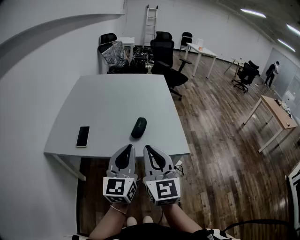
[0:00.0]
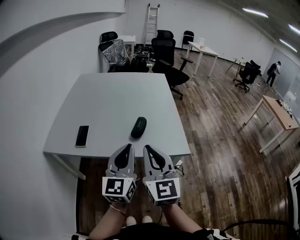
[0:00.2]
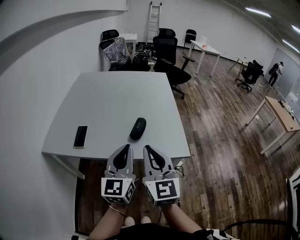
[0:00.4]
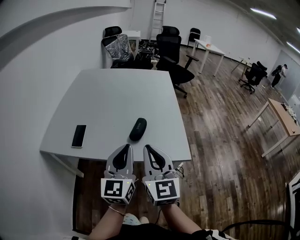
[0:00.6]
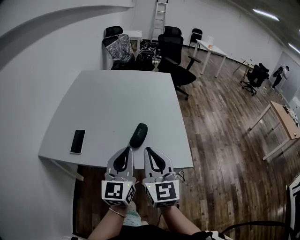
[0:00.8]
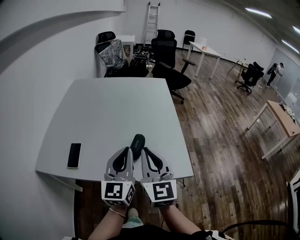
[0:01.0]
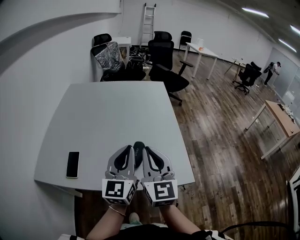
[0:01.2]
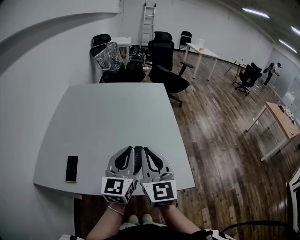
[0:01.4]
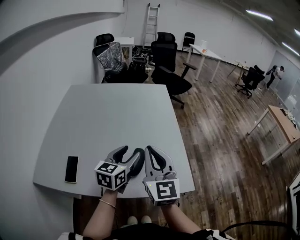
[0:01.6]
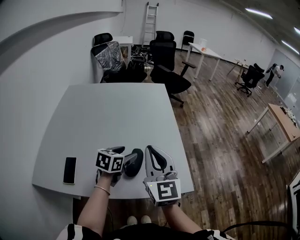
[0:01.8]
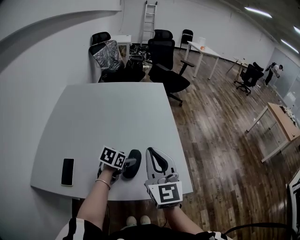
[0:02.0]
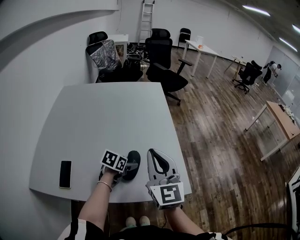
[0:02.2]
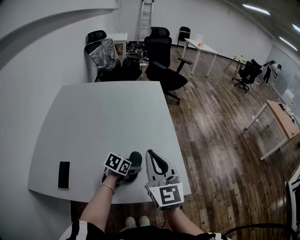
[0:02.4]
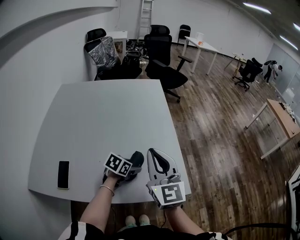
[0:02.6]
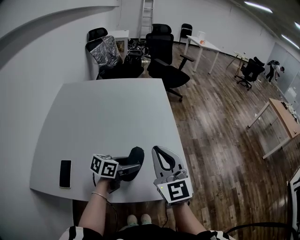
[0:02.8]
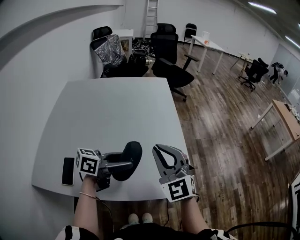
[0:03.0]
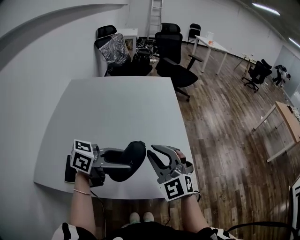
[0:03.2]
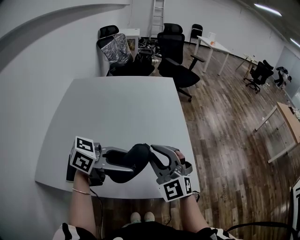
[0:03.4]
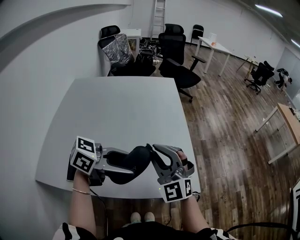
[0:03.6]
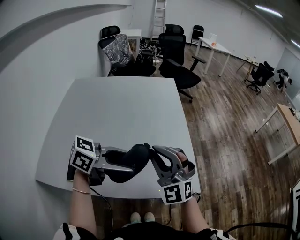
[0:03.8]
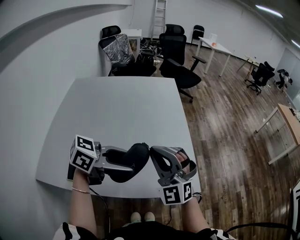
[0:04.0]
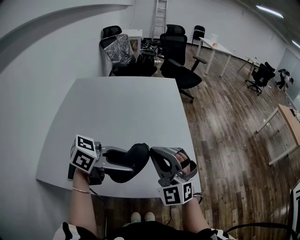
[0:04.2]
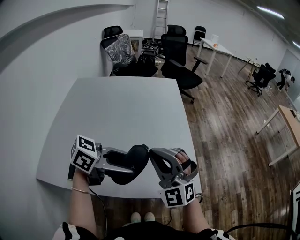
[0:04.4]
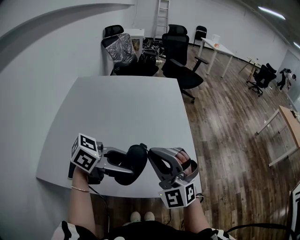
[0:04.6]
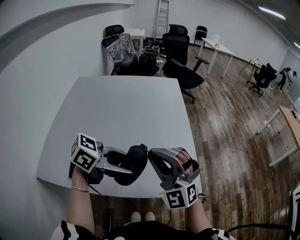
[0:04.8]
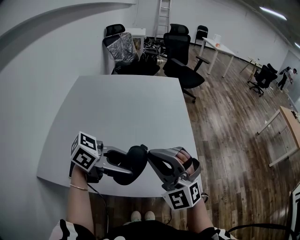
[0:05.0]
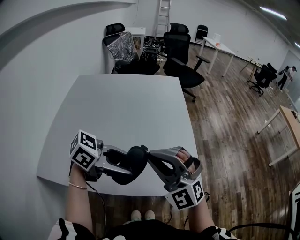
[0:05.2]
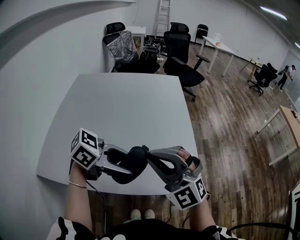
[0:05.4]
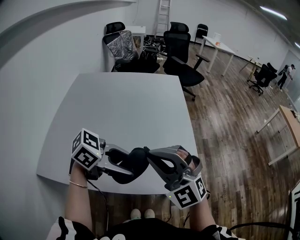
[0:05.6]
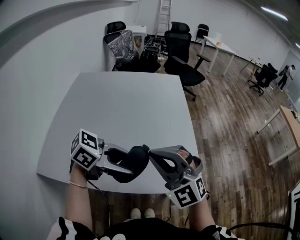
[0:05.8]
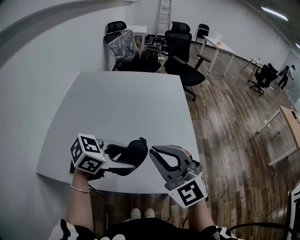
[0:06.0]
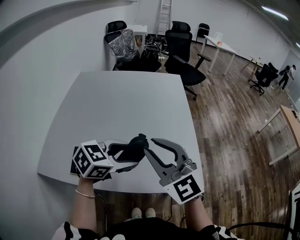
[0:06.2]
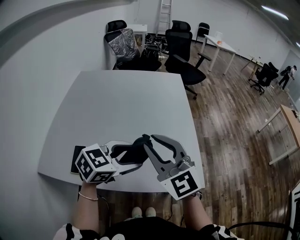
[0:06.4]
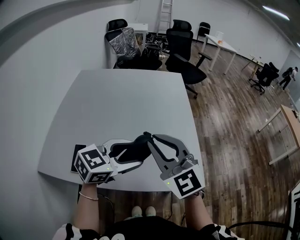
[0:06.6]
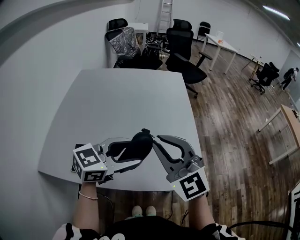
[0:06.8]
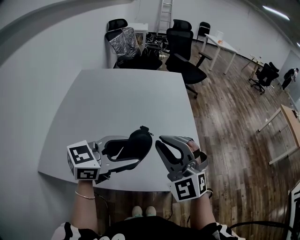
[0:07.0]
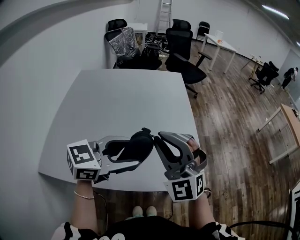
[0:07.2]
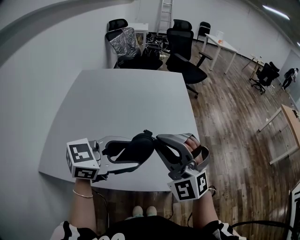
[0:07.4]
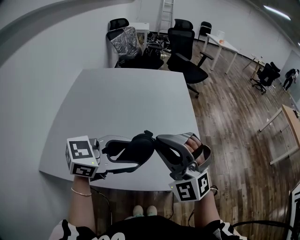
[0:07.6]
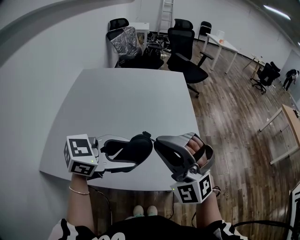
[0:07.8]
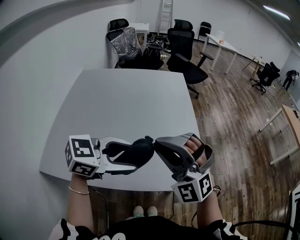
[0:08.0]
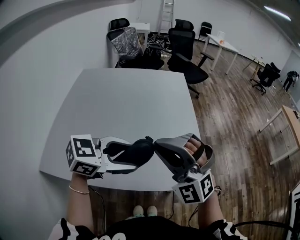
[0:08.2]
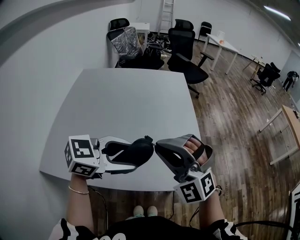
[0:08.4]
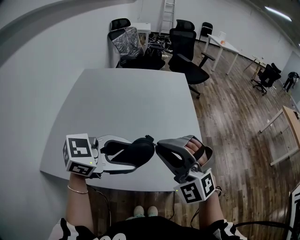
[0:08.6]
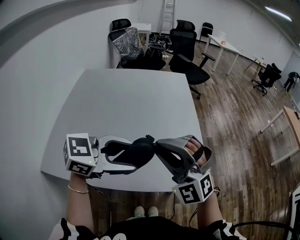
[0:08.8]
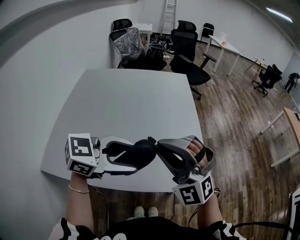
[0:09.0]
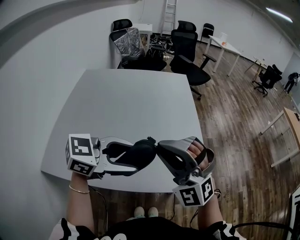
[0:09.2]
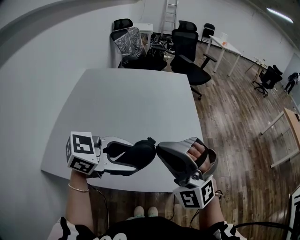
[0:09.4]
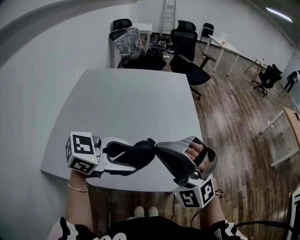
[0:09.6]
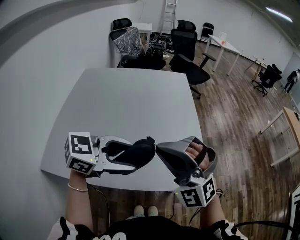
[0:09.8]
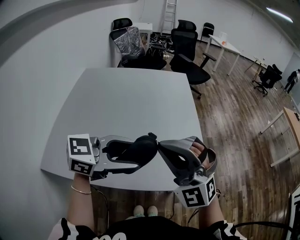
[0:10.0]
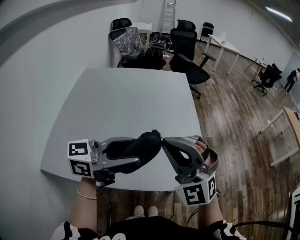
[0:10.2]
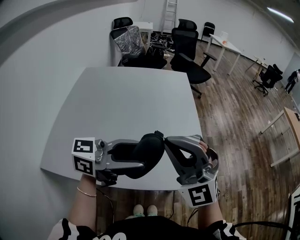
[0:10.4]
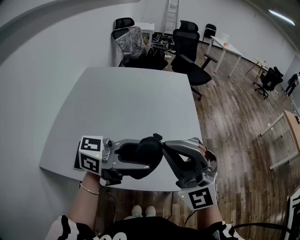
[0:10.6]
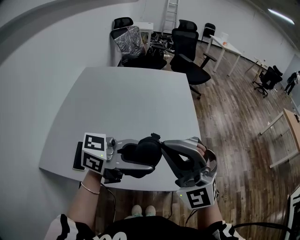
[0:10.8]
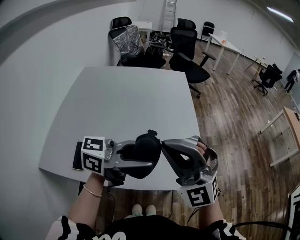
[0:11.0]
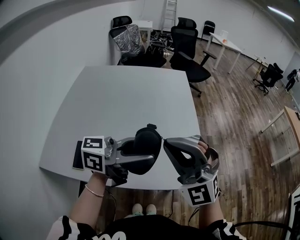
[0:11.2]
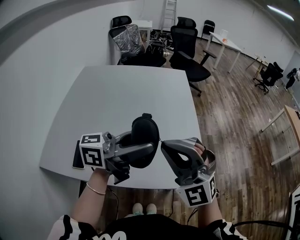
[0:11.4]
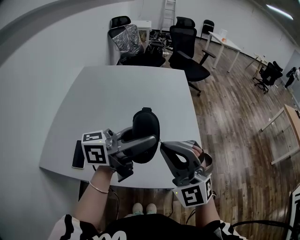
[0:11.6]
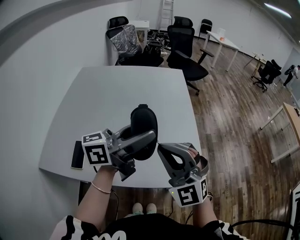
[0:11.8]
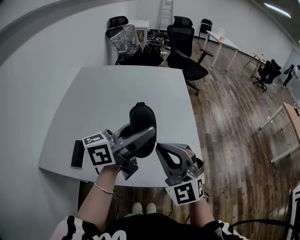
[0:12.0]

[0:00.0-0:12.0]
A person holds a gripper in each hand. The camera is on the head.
0:00.0 to 0:01.6: Both grippers travel together forward, roughly 25 cm. The left gripper rotates about 30 degrees, and opens its fingers.
0:01.6 to 0:03.0: The left gripper moves some 20 cm downward and comes back, and changes its angle by approximately 40 degrees. The right gripper moves about 5 cm, and changes its angle by about 30 degrees.
0:03.0 to 0:04.4: The right gripper travels backward by some 5 cm, and swivels about 20 degrees, while the left gripper heads upward and backward, covering some 10 cm.
0:04.4 to 0:06.0: The left gripper turns by about 20 degrees; the right gripper turns by about 20 degrees.
0:06.0 to 0:07.6: The right gripper changes its angle by about 30 degrees. Meanwhile the left gripper moves upward, approximately 5 cm.
0:07.6 to 0:09.0: There are only small adjustments of the grippers.
0:09.0 to 0:10.4: The left gripper swivels roughly 30 degrees.
0:10.4 to 0:12.0: The left gripper moves some 10 cm, and turns by roughly 30 degrees. The right gripper is displaced downward by roughly 10 cm.

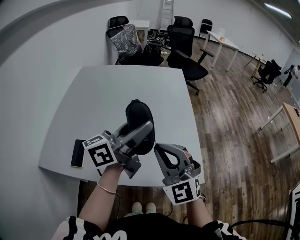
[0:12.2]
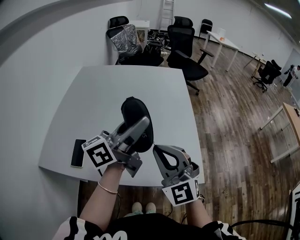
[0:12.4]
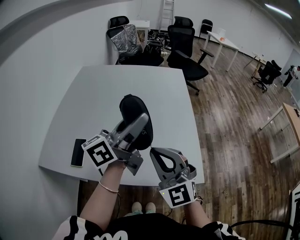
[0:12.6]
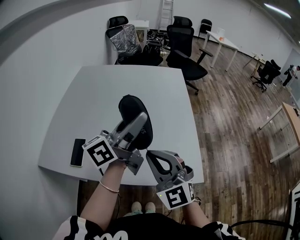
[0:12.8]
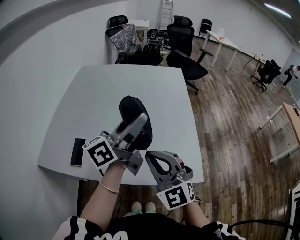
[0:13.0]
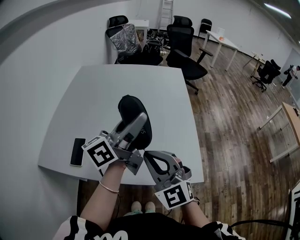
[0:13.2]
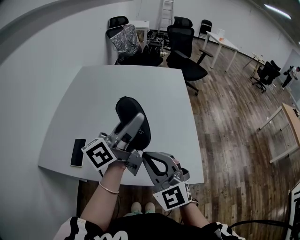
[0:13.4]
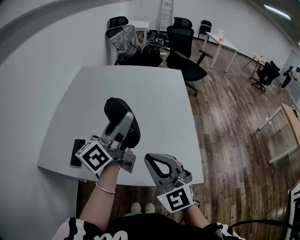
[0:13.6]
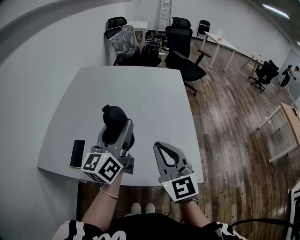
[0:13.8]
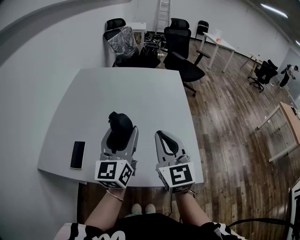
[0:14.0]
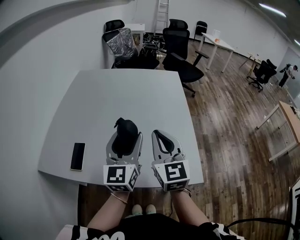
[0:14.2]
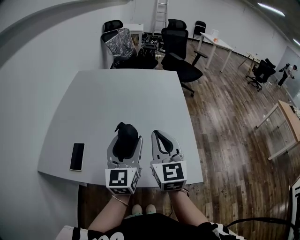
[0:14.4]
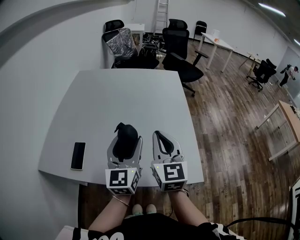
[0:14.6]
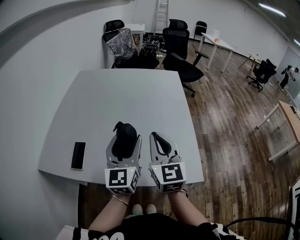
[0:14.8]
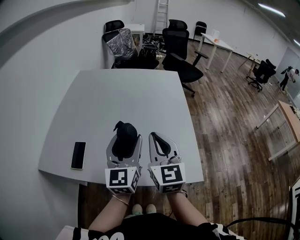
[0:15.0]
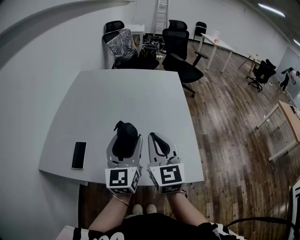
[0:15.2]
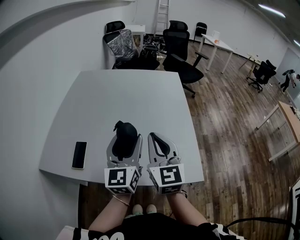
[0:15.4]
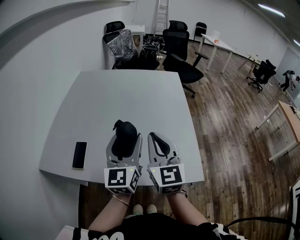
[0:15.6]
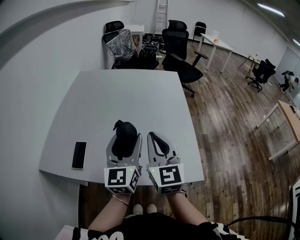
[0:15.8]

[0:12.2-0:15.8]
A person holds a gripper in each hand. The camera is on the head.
0:12.2 to 0:14.0: The left gripper is displaced to the left by approximately 5 cm, and turns by some 50 degrees, while the right gripper moves forward, some 5 cm, and turns by roughly 30 degrees.
0:14.0 to 0:15.8: The grippers stay close to where they were, moving slightly.

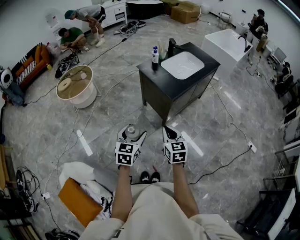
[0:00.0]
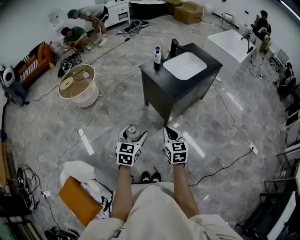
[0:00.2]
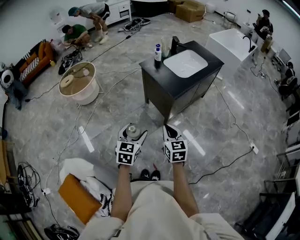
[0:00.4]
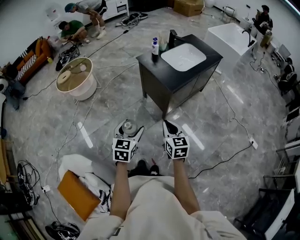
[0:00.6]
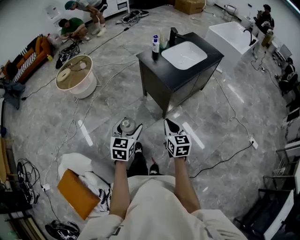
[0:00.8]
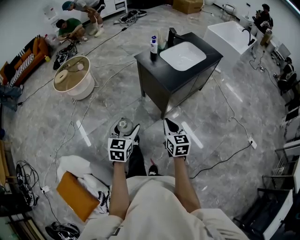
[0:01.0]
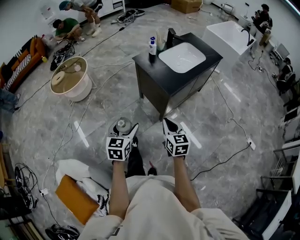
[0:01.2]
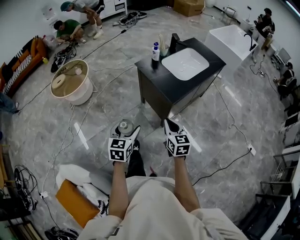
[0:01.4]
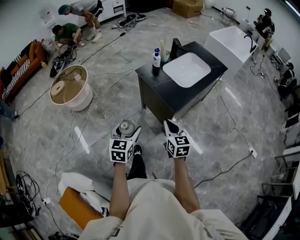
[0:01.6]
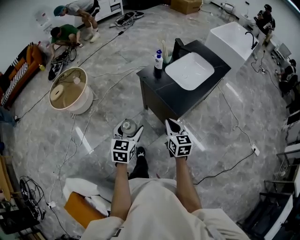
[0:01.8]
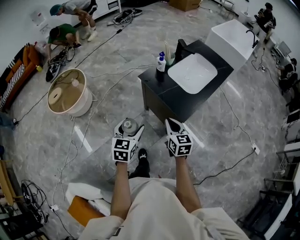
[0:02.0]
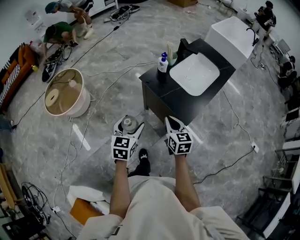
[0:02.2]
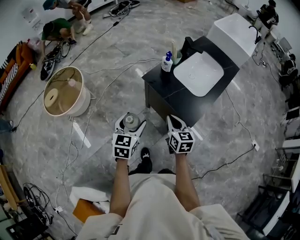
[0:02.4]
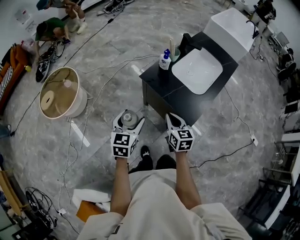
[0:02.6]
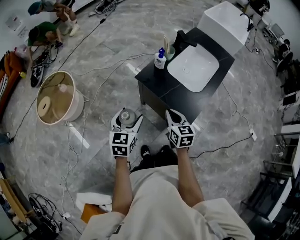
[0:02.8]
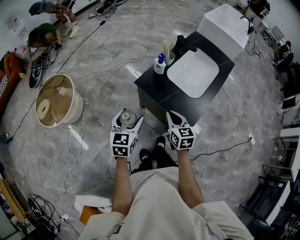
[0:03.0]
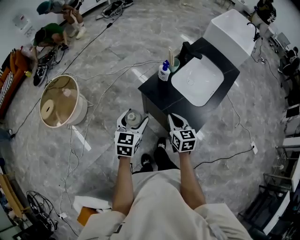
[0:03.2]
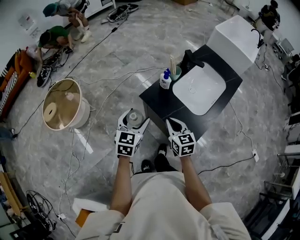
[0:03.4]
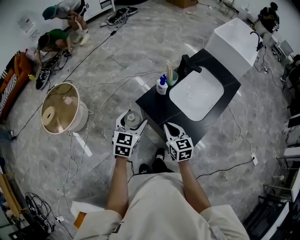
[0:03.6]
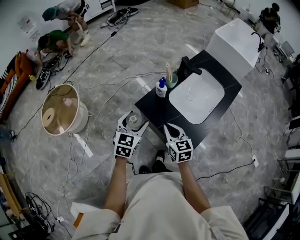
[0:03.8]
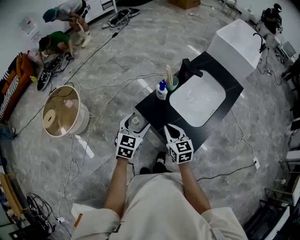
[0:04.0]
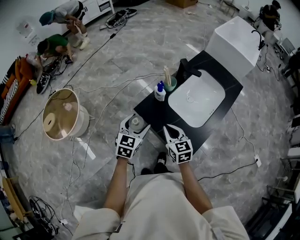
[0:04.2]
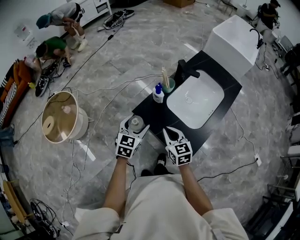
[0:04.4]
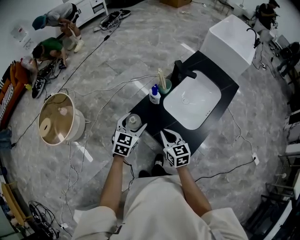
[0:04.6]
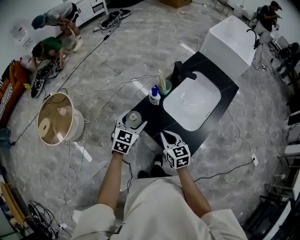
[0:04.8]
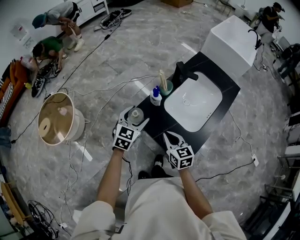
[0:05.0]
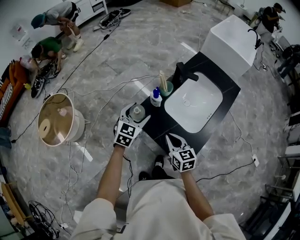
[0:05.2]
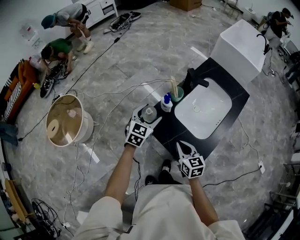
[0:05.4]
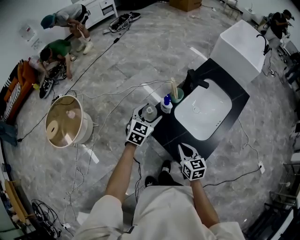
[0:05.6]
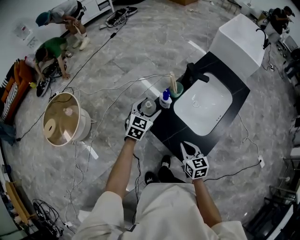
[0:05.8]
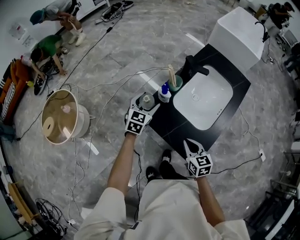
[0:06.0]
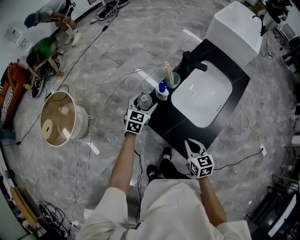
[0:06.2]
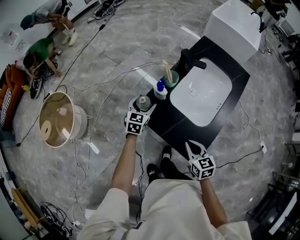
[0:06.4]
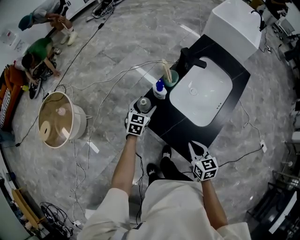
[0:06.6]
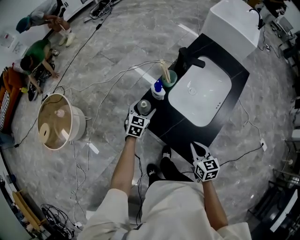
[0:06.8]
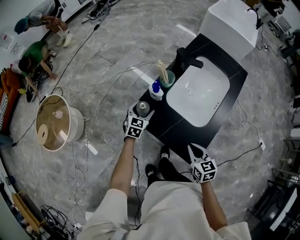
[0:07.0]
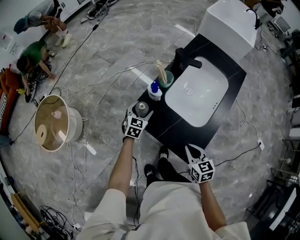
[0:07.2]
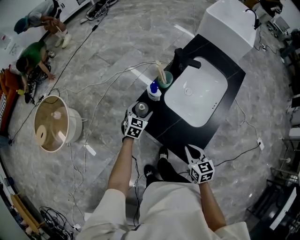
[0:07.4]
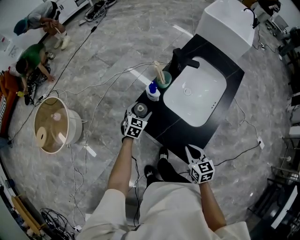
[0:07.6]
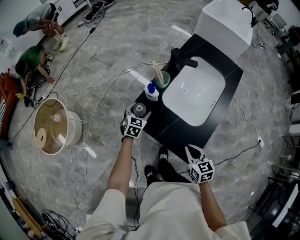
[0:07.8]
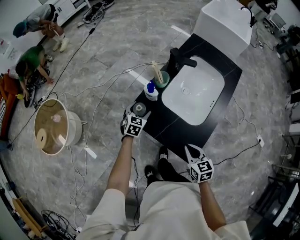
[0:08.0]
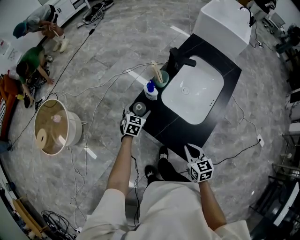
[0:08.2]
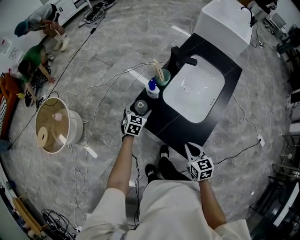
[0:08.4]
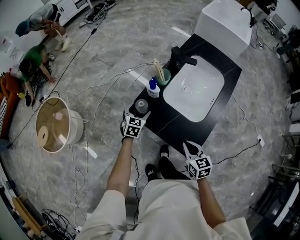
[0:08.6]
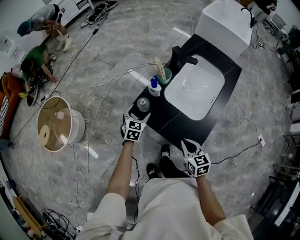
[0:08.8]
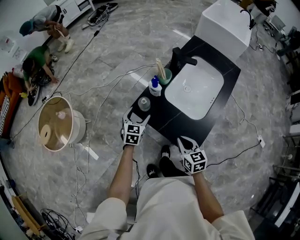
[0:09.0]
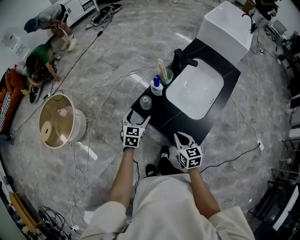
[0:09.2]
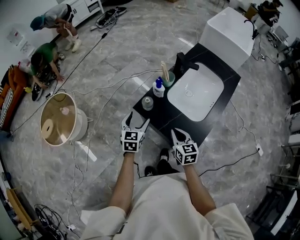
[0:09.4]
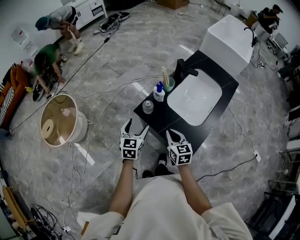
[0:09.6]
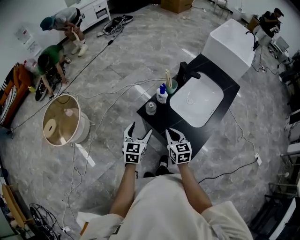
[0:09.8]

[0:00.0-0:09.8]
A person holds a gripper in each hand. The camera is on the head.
0:00.0 to 0:01.4: The two grippers go approximately 10 cm forward.
0:01.4 to 0:02.8: The two grippers go approximately 25 cm forward.
0:02.8 to 0:04.2: The right gripper is displaced forward by about 10 cm. Meanwhile the left gripper heads forward and to the right, covering about 15 cm.
0:04.2 to 0:05.6: The right gripper shifts by about 5 cm. Meanwhile the left gripper goes roughly 10 cm forward.
0:05.6 to 0:07.0: The left gripper is displaced downward by some 15 cm. Meanwhile the right gripper heads to the right and backward, covering about 10 cm.
0:07.0 to 0:08.4: There are only small adjustments of the grippers.
0:08.4 to 0:09.8: The right gripper heads to the left and forward, covering roughly 15 cm. The left gripper goes roughly 20 cm backward and upward, and swivels approximately 20 degrees.
